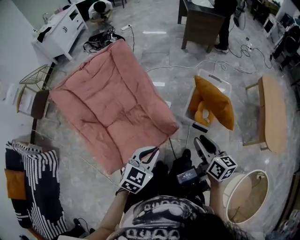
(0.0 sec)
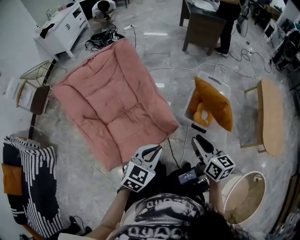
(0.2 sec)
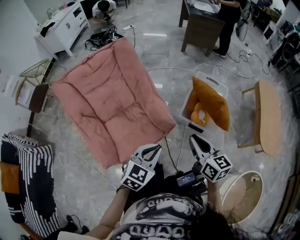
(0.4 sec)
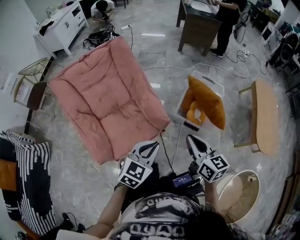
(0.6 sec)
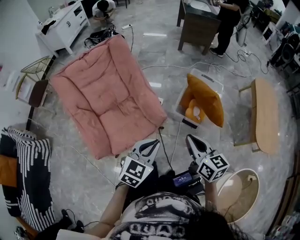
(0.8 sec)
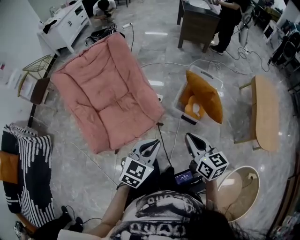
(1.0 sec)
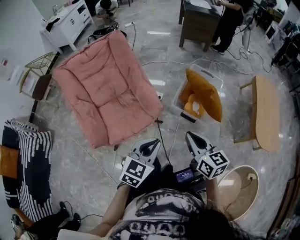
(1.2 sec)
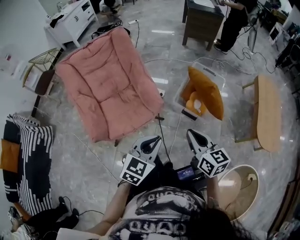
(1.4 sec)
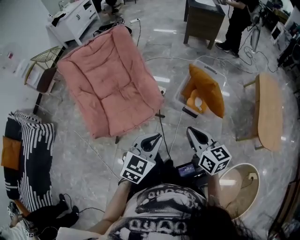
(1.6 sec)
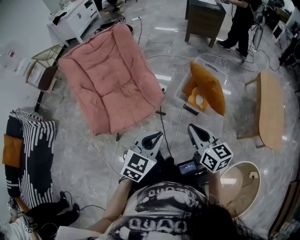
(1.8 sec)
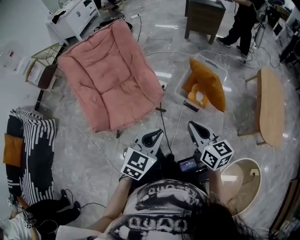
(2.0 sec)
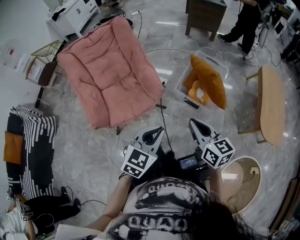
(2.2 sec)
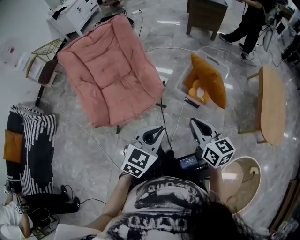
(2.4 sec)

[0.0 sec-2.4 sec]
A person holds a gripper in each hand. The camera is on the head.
0.0 sec to 1.2 sec: The right gripper travels backward and to the right by about 15 cm, and closes up; the left gripper goes some 15 cm to the right and backward.
1.2 sec to 2.4 sec: The left gripper shifts by approximately 5 cm.

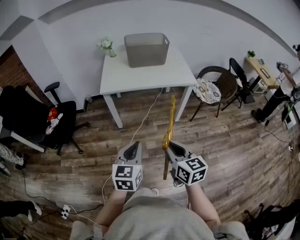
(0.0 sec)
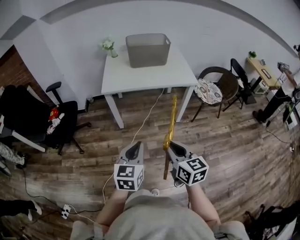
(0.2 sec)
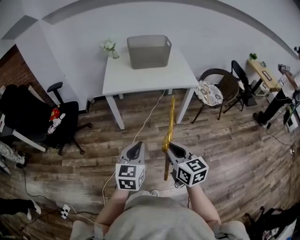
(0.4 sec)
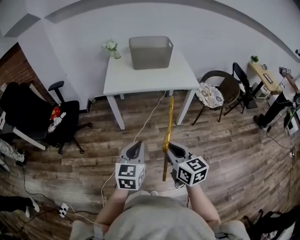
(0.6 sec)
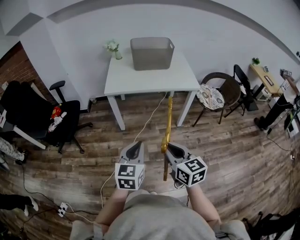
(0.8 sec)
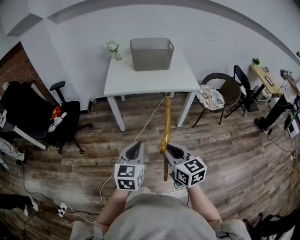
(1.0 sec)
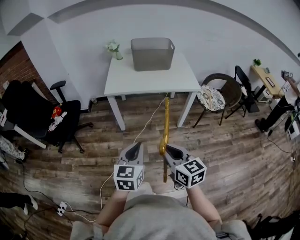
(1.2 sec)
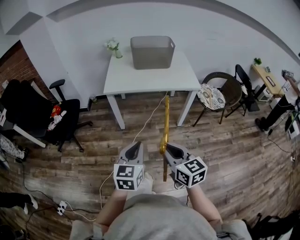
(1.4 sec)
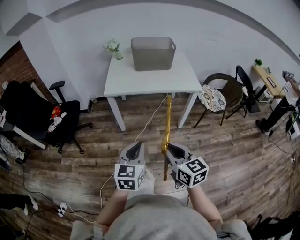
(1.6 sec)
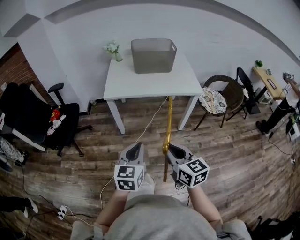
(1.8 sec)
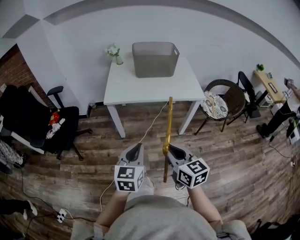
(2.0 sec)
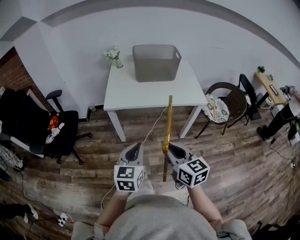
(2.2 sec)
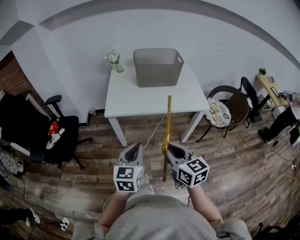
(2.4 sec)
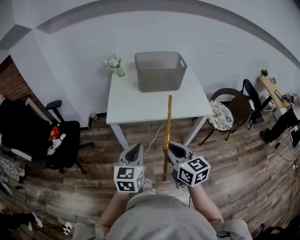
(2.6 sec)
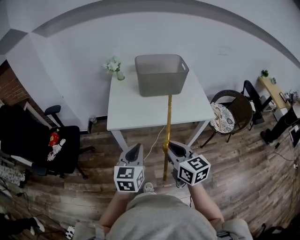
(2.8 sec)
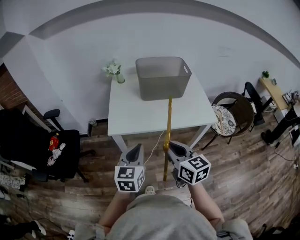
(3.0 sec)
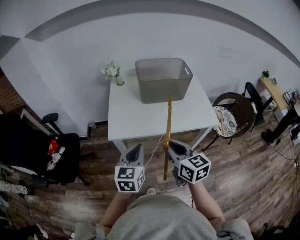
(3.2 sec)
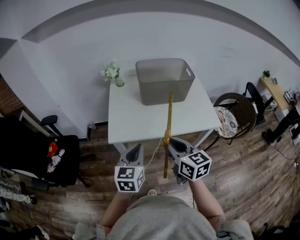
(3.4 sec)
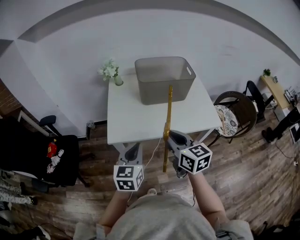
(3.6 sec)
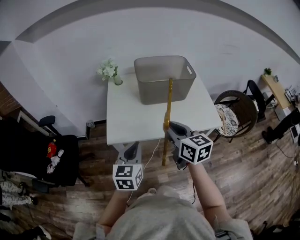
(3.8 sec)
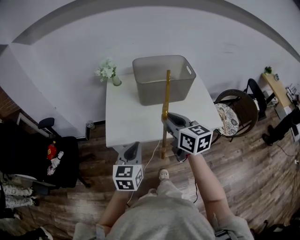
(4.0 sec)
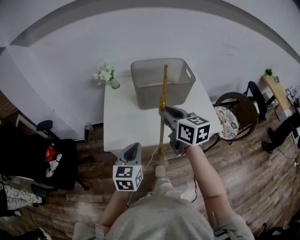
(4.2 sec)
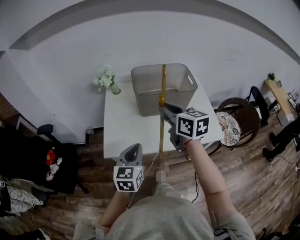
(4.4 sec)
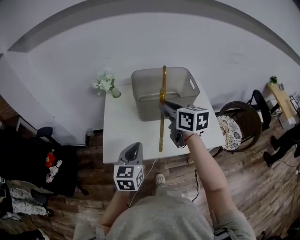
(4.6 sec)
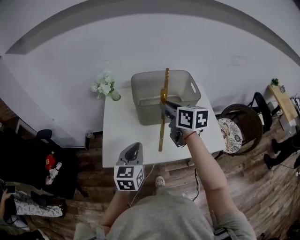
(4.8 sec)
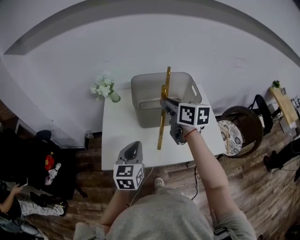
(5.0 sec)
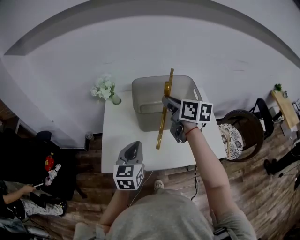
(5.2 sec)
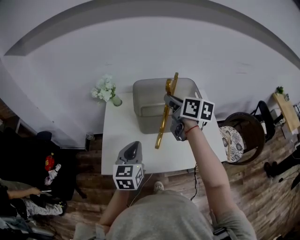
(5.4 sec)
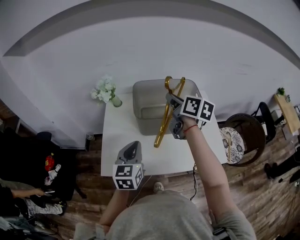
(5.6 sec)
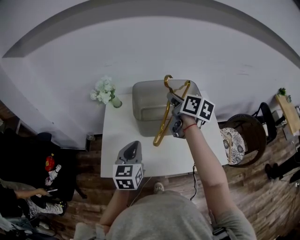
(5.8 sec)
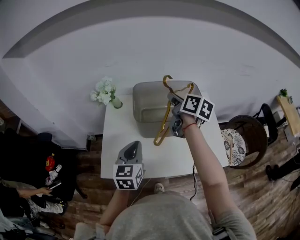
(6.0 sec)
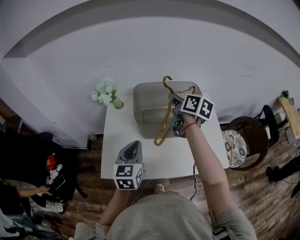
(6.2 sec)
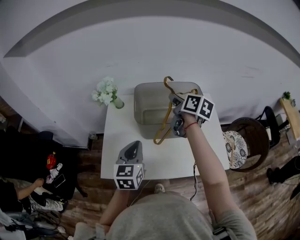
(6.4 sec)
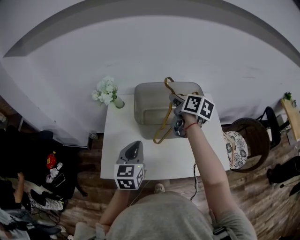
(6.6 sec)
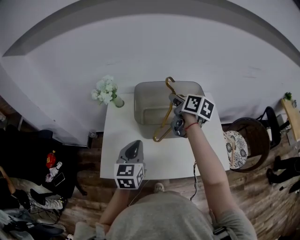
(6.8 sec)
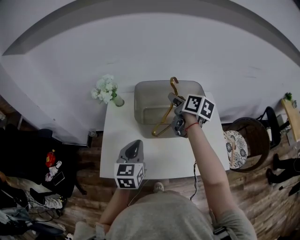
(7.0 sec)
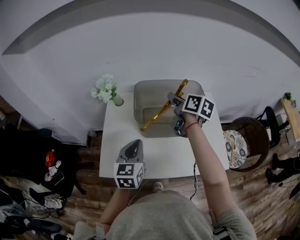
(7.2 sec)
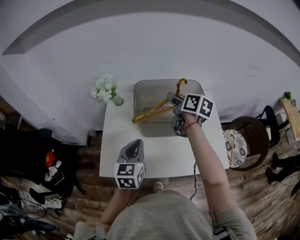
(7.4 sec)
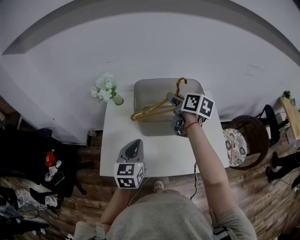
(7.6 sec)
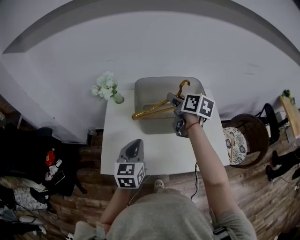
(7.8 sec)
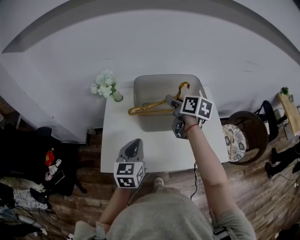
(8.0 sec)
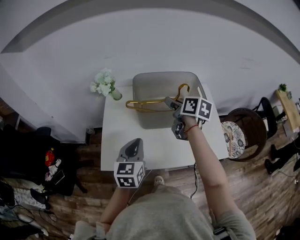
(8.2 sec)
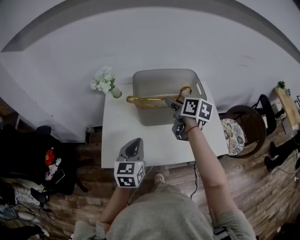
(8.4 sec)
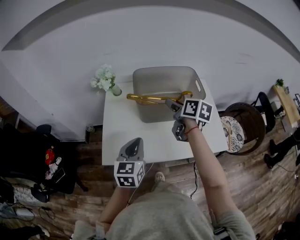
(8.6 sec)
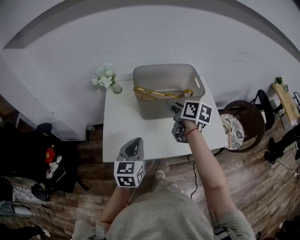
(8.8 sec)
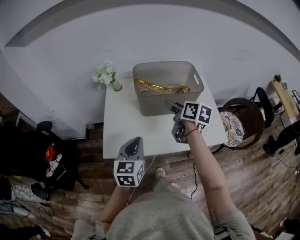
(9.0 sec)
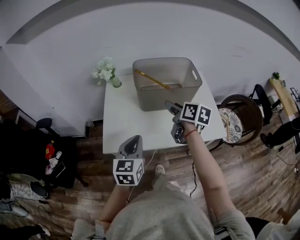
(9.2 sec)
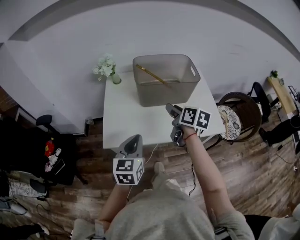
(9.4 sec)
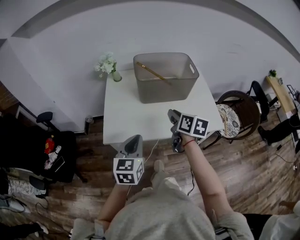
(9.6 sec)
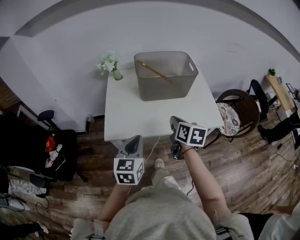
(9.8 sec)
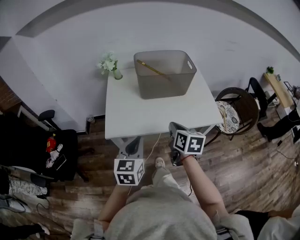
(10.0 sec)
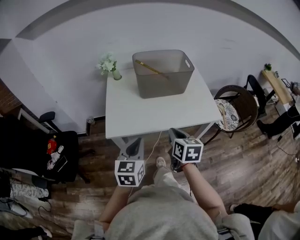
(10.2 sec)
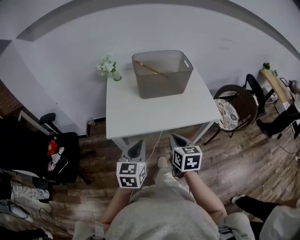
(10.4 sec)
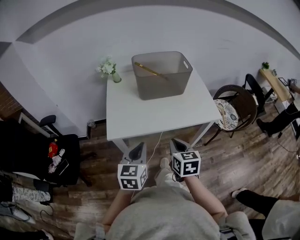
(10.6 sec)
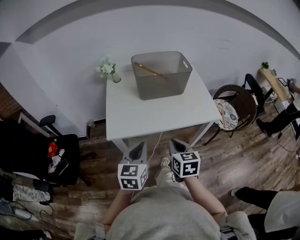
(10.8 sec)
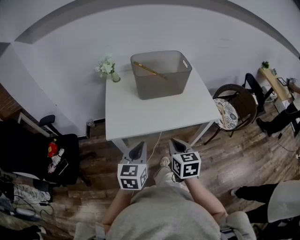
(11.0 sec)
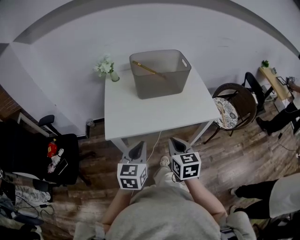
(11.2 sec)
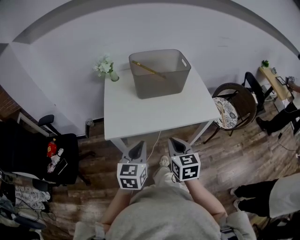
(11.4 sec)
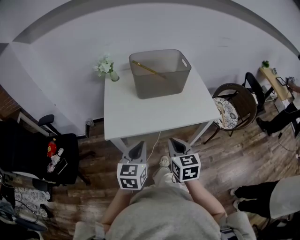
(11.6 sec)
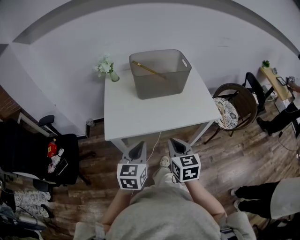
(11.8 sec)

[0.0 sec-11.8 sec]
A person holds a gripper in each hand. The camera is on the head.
0.0 sec to 1.4 sec: The grippers stay close to where they were, moving slightly.
1.4 sec to 3.0 sec: Both grippers move forward, some 35 cm.
3.0 sec to 4.4 sec: The left gripper goes approximately 15 cm forward. The right gripper heads forward, covering roughly 30 cm.
4.4 sec to 6.0 sec: The right gripper travels forward and to the right by roughly 25 cm, and rotates some 30 degrees. Meanwhile the left gripper moves forward, approximately 15 cm.
6.0 sec to 7.4 sec: The right gripper opens its fingers.
7.4 sec to 8.8 sec: Both grippers move backward, some 10 cm.
8.8 sec to 10.4 sec: The right gripper heads backward, covering approximately 30 cm, swivels approximately 30 degrees, and closes its fingers, while the left gripper moves backward, about 20 cm.
10.4 sec to 11.8 sec: The grippers stay close to where they were, moving slightly.

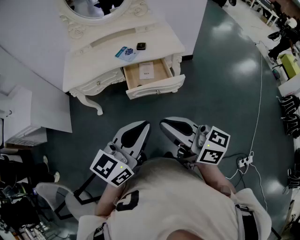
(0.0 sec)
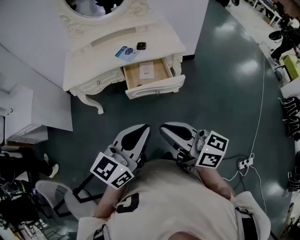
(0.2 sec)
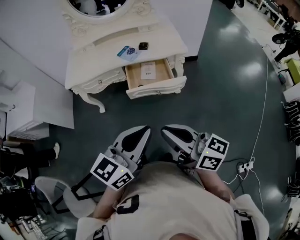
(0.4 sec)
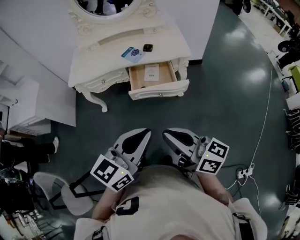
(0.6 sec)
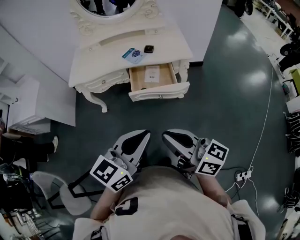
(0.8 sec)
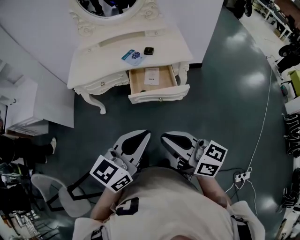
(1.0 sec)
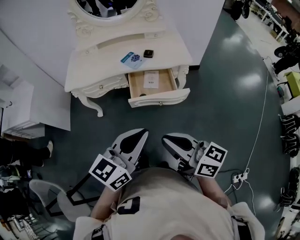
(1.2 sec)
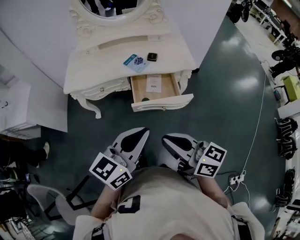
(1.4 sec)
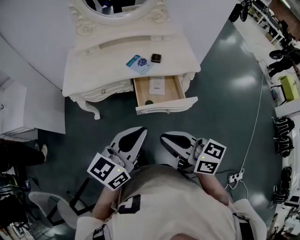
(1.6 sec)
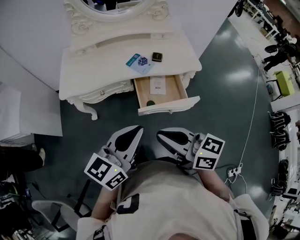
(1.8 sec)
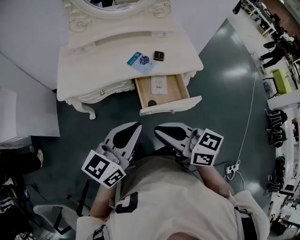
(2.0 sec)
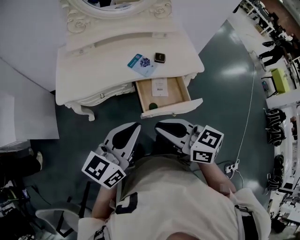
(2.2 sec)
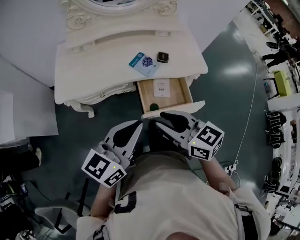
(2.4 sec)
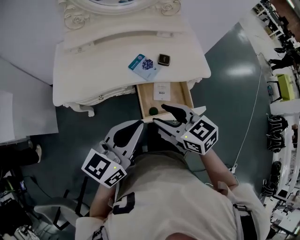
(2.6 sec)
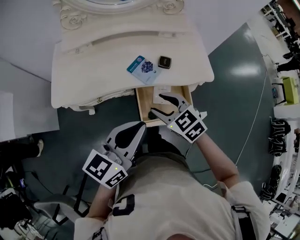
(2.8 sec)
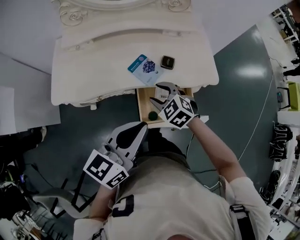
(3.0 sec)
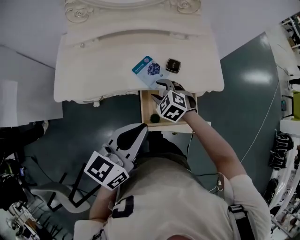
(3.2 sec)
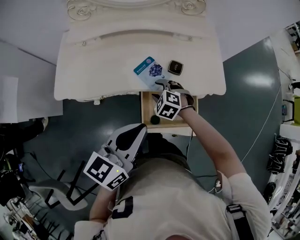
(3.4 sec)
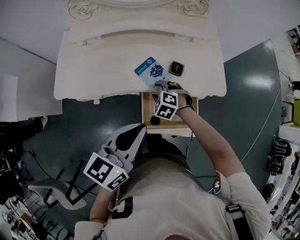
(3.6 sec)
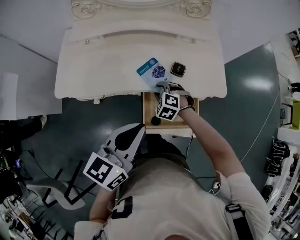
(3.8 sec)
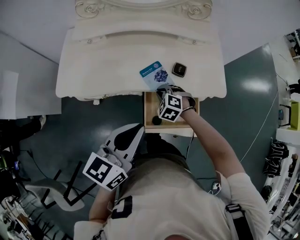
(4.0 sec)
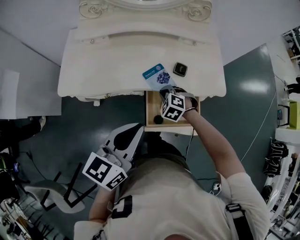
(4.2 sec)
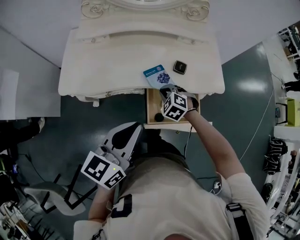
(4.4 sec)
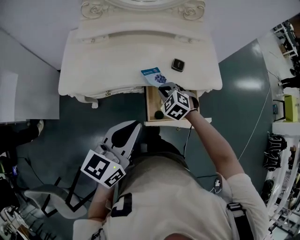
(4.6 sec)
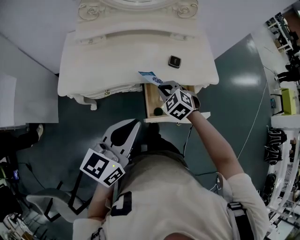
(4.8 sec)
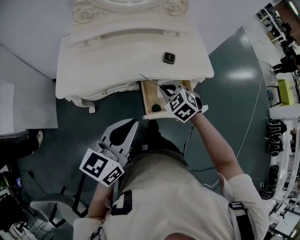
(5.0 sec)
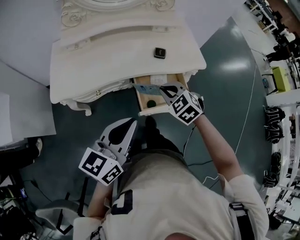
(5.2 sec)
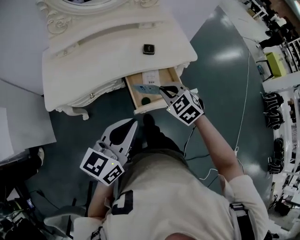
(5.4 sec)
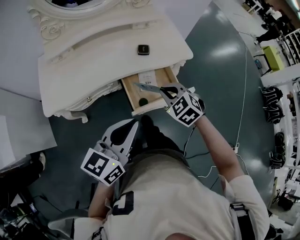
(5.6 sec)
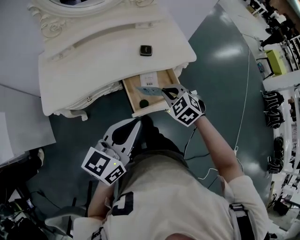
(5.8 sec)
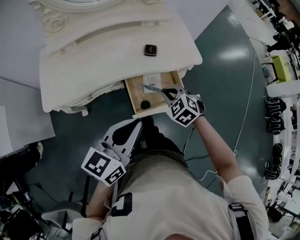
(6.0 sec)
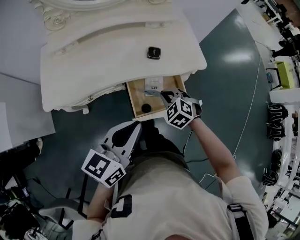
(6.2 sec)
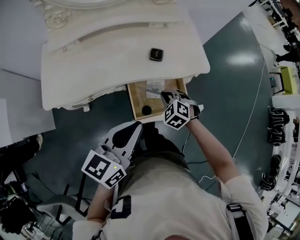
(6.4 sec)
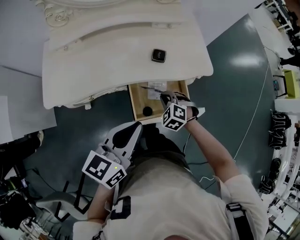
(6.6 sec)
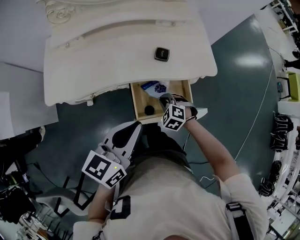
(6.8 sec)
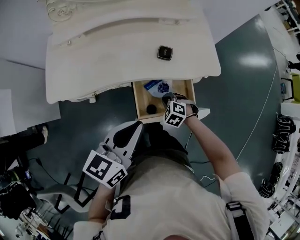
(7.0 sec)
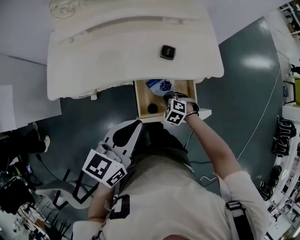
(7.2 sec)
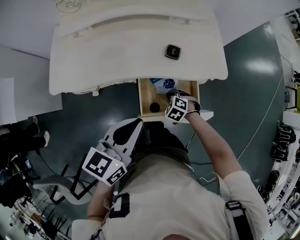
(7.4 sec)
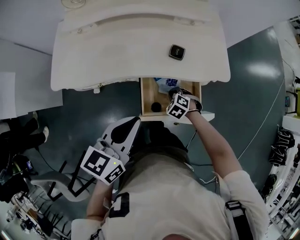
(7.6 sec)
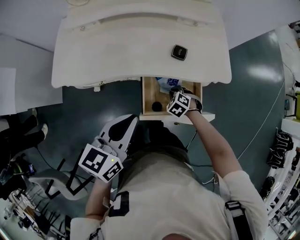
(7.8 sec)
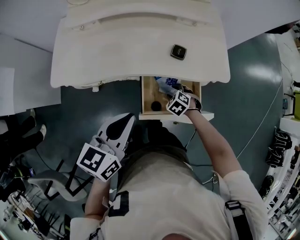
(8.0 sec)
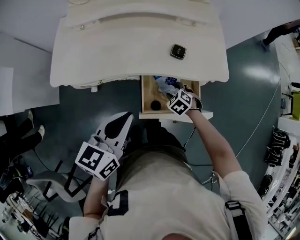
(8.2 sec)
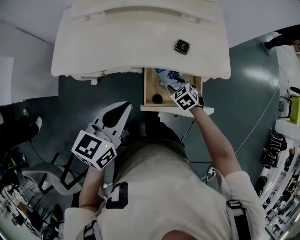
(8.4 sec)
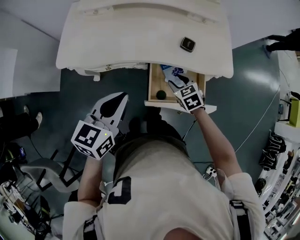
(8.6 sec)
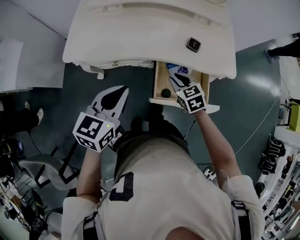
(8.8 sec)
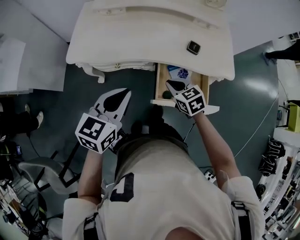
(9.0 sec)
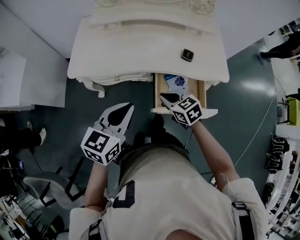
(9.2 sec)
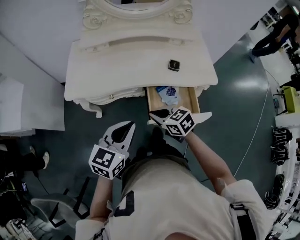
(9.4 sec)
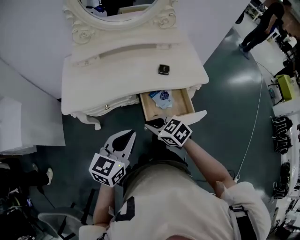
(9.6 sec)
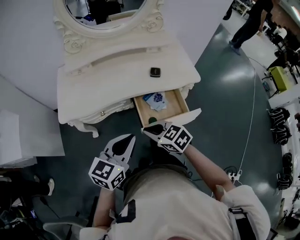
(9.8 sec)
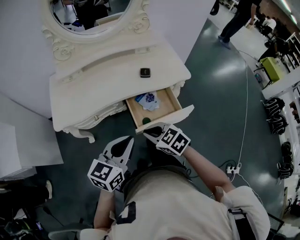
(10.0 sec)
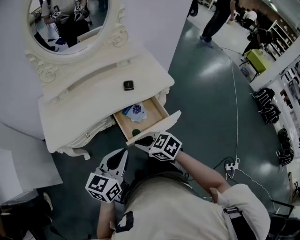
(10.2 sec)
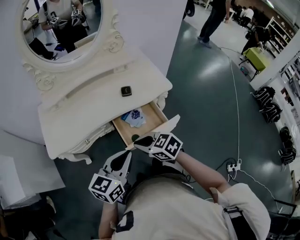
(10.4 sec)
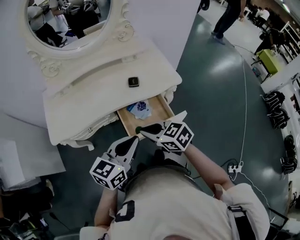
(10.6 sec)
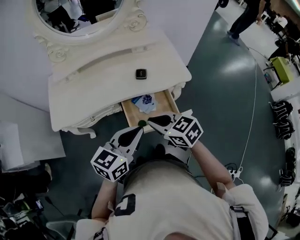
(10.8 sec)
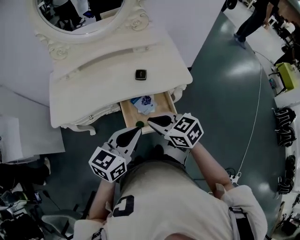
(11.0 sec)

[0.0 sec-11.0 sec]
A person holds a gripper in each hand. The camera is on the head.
0.0 sec to 1.6 sec: The two grippers go about 15 cm forward and to the left.
1.6 sec to 3.2 sec: The right gripper shifts about 50 cm forward and downward, tilts its fingers approximately 50 degrees downward, and opens its fingers. The left gripper shifts about 25 cm forward.
3.2 sec to 4.8 sec: The right gripper moves backward and upward, approximately 5 cm, and closes its fingers; the left gripper travels to the left and backward by roughly 10 cm.
4.8 sec to 6.2 sec: The two grippers go about 10 cm to the right.
6.2 sec to 7.8 sec: The left gripper shifts by approximately 5 cm, while the right gripper heads downward, covering roughly 15 cm.
7.8 sec to 9.4 sec: The right gripper moves upward, to the left and backward, roughly 30 cm, tilts its fingers some 30 degrees upward, and opens, then closes once more, while the left gripper is displaced to the left and backward by roughly 10 cm.
9.4 sec to 11.0 sec: The right gripper moves to the right and upward, roughly 20 cm. The left gripper goes roughly 20 cm to the right.
